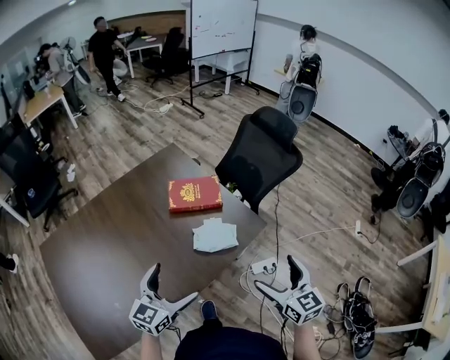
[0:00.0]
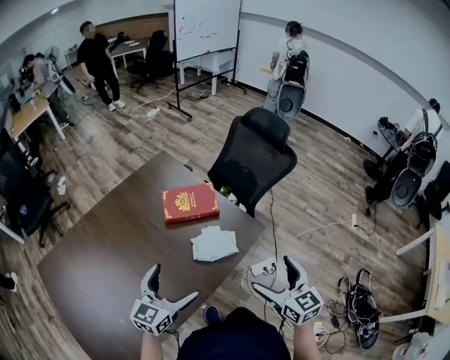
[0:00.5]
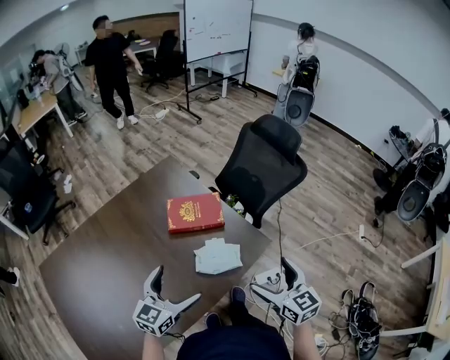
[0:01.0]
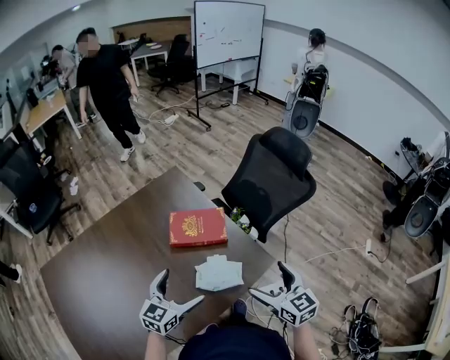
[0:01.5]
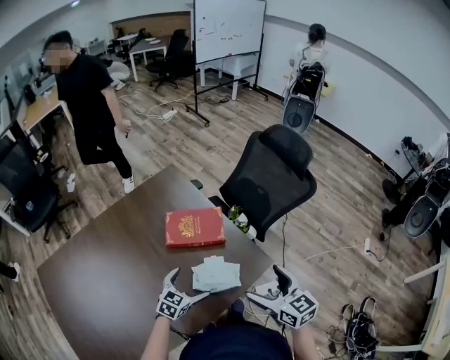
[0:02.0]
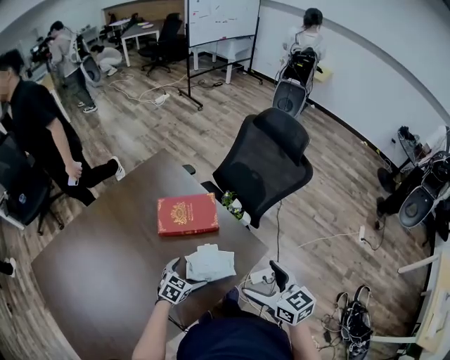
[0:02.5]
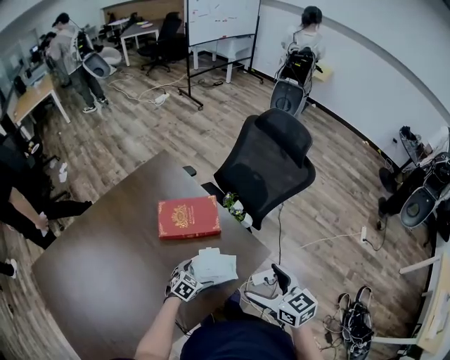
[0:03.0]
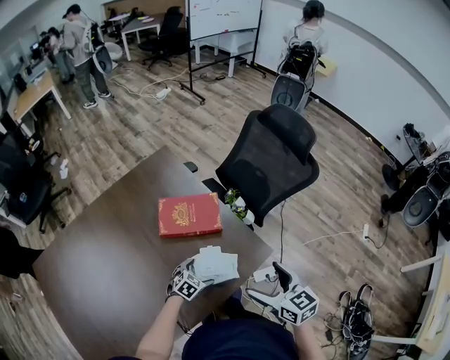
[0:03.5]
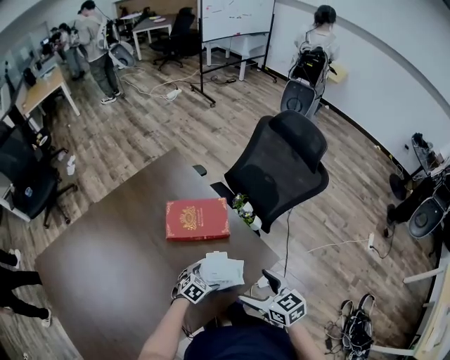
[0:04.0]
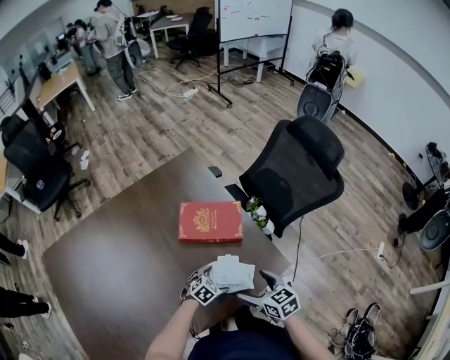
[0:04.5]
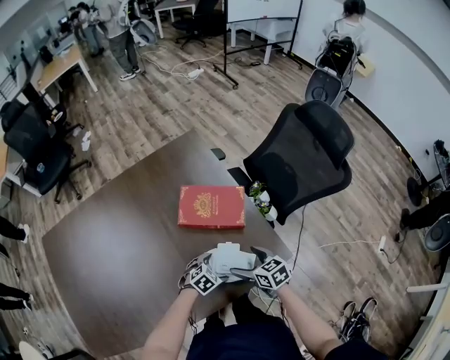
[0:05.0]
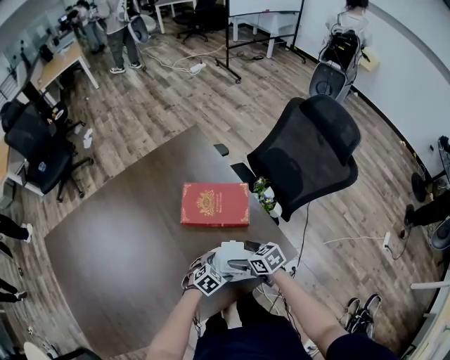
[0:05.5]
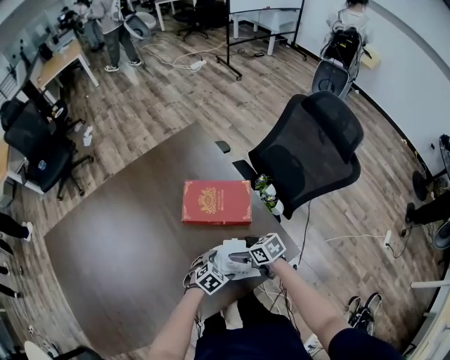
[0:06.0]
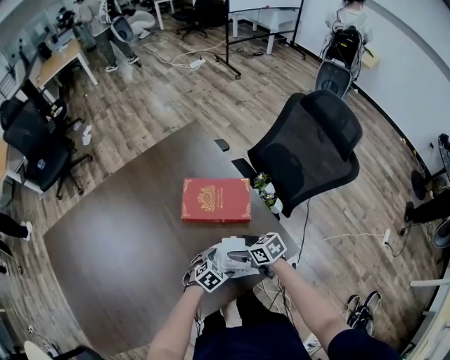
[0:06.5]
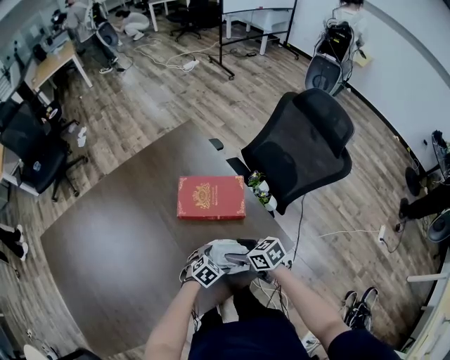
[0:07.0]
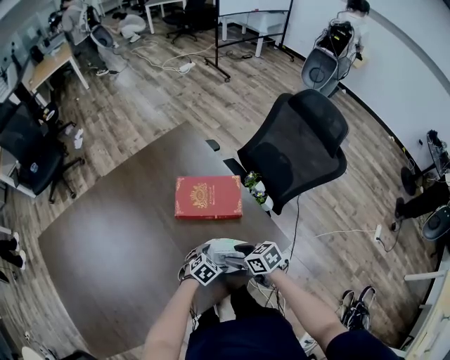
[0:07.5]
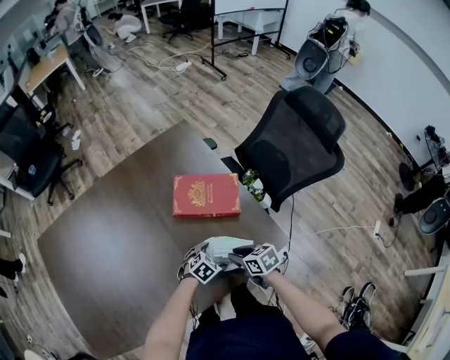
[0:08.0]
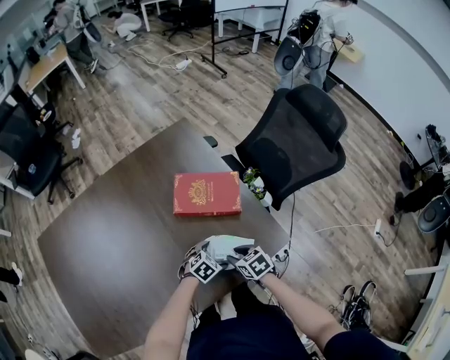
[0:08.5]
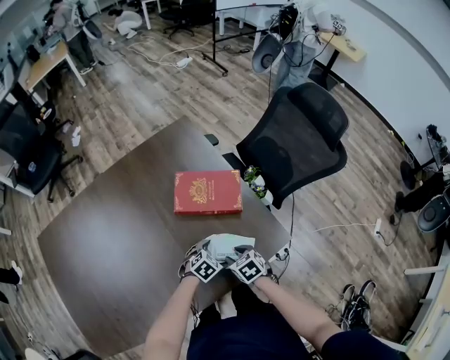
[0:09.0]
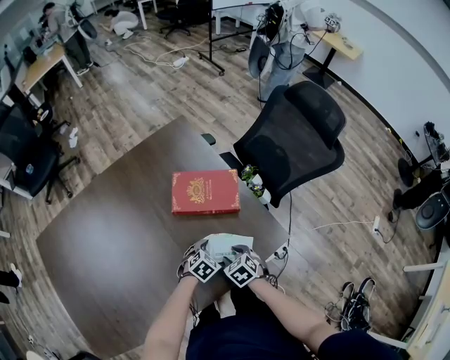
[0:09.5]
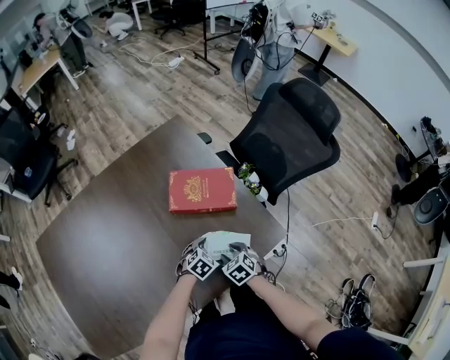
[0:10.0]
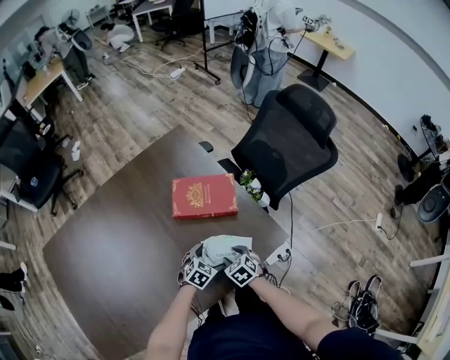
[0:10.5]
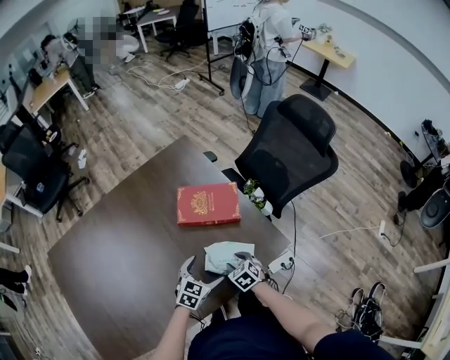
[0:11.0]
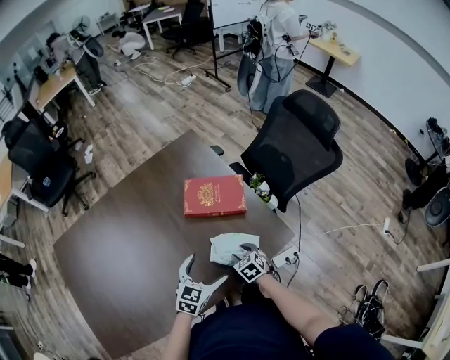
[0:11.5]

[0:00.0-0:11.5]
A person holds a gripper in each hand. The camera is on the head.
0:00.0 to 0:02.0: The left gripper moves forward and downward, some 30 cm, and turns by some 20 degrees. Meanwhile the right gripper heads forward, covering roughly 15 cm.
0:02.0 to 0:04.0: The right gripper heads downward, covering roughly 10 cm, while the left gripper goes roughly 15 cm downward, and changes its angle by approximately 20 degrees.
0:04.0 to 0:06.0: The right gripper heads downward, covering some 20 cm, and swivels roughly 30 degrees.
0:06.0 to 0:07.5: The right gripper shifts by roughly 5 cm.
0:07.5 to 0:09.5: The right gripper moves downward, about 5 cm, and rotates approximately 30 degrees.
0:09.5 to 0:11.5: The left gripper moves upward, about 20 cm, and rotates roughly 40 degrees.

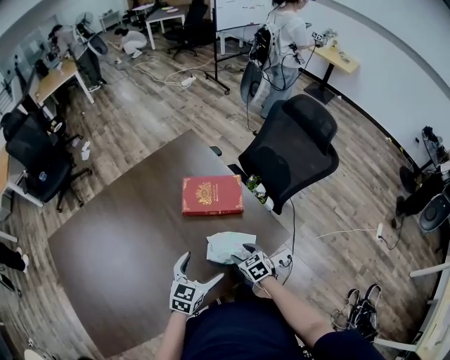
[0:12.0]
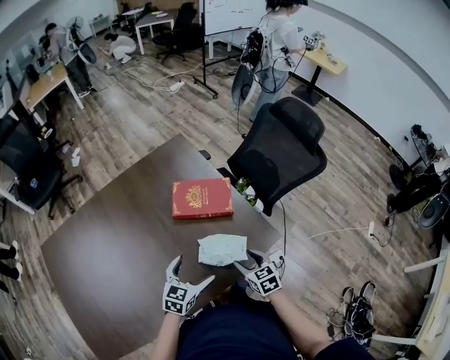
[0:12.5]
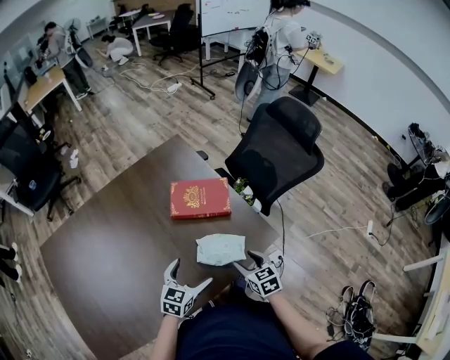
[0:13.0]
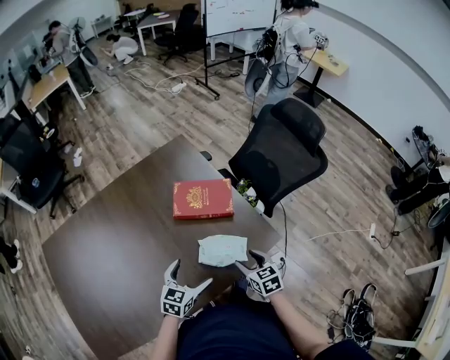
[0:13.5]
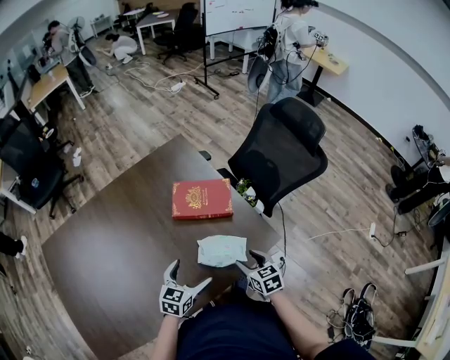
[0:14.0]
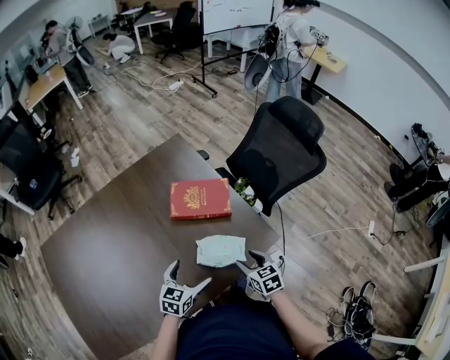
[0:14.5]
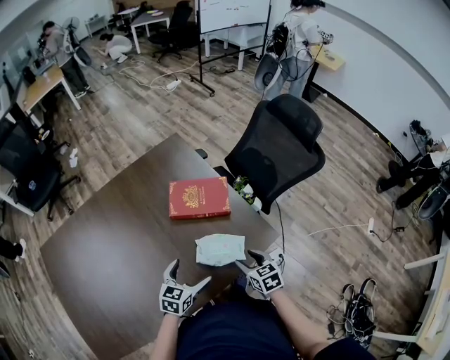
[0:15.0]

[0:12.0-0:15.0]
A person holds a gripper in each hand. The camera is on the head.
0:12.0 to 0:13.5: The right gripper goes some 10 cm upward and to the right.
0:13.5 to 0:15.0: Both grippers stay put.

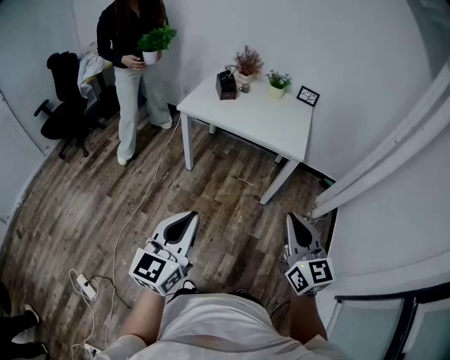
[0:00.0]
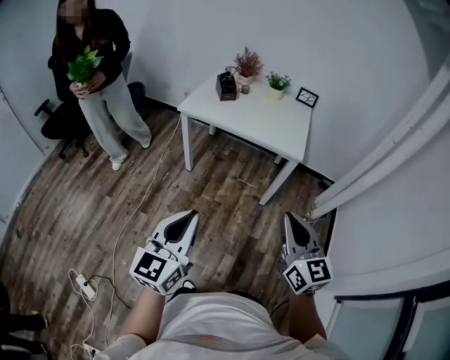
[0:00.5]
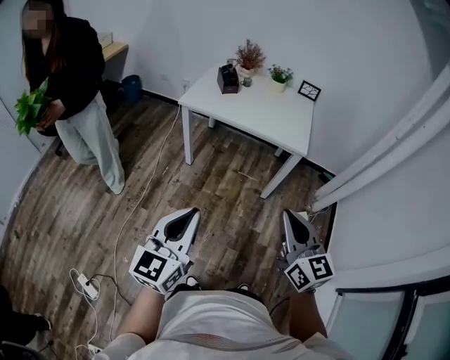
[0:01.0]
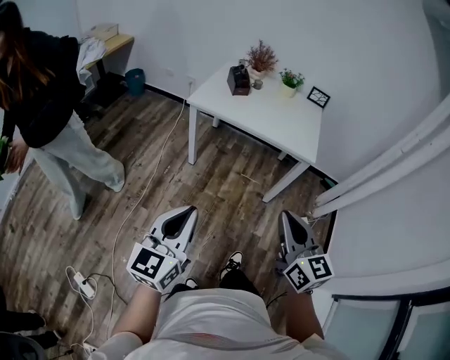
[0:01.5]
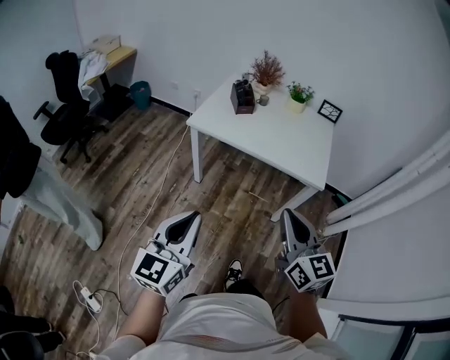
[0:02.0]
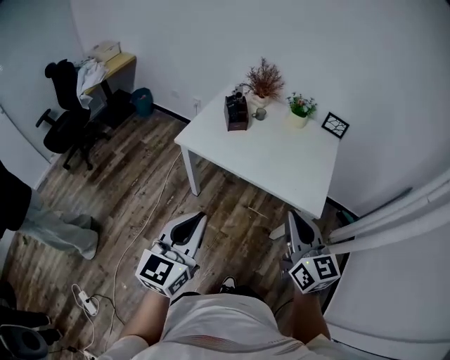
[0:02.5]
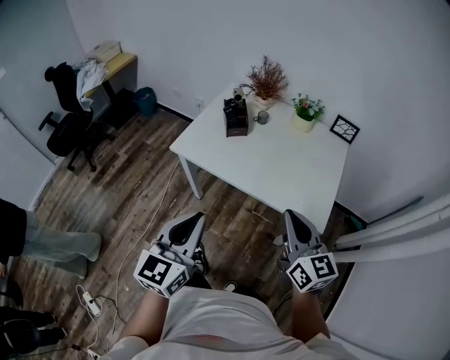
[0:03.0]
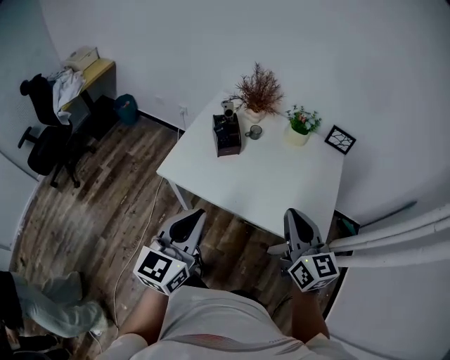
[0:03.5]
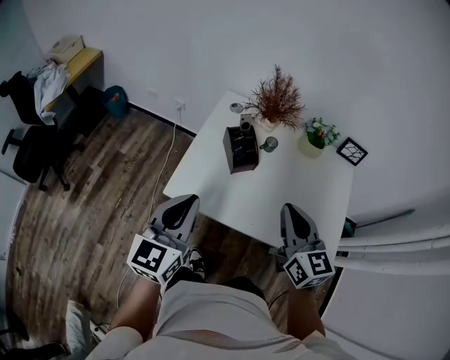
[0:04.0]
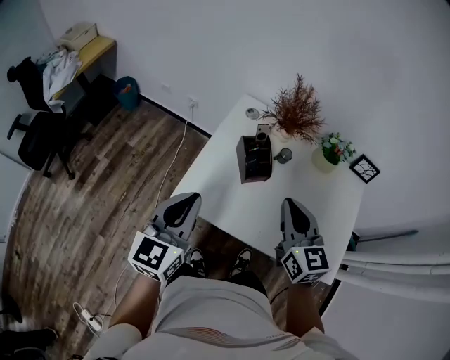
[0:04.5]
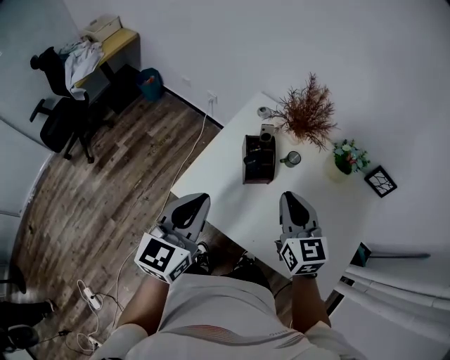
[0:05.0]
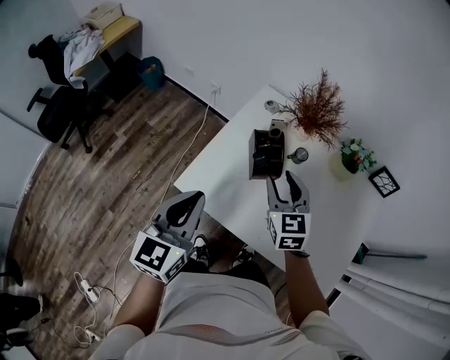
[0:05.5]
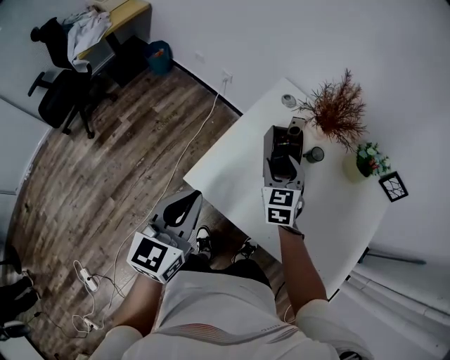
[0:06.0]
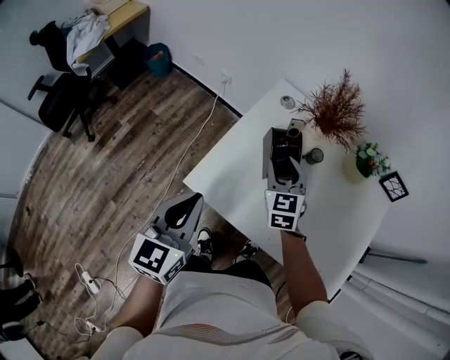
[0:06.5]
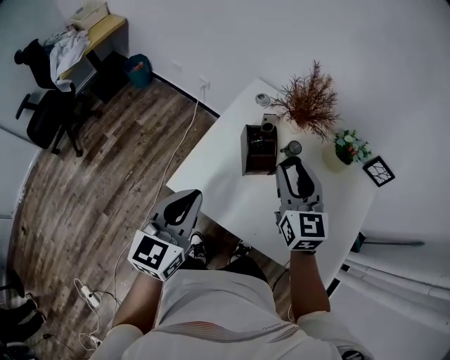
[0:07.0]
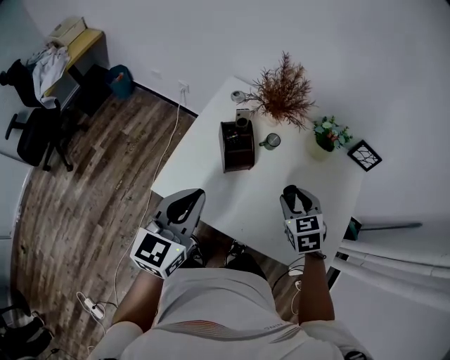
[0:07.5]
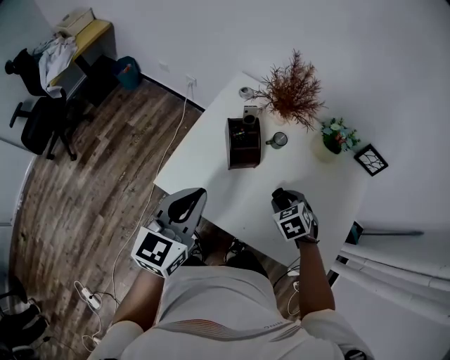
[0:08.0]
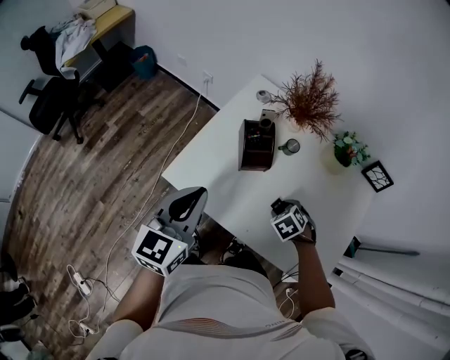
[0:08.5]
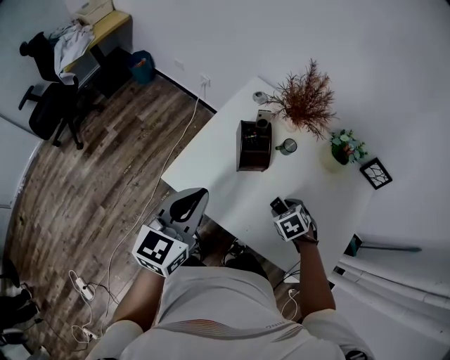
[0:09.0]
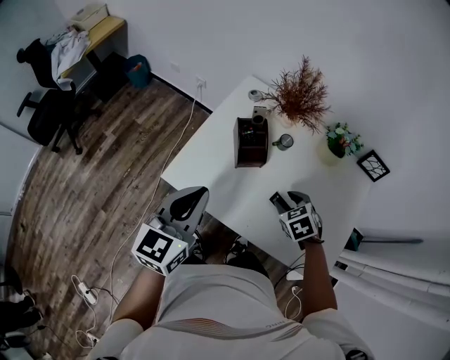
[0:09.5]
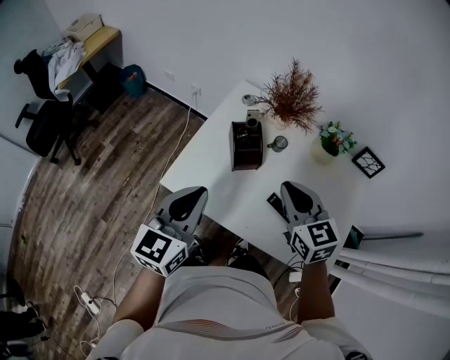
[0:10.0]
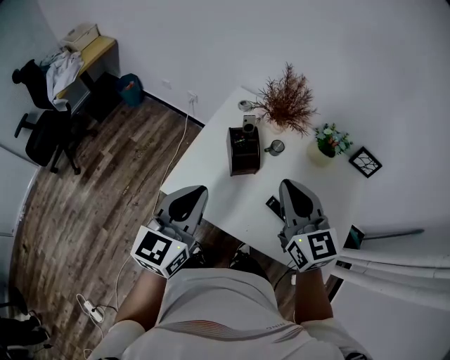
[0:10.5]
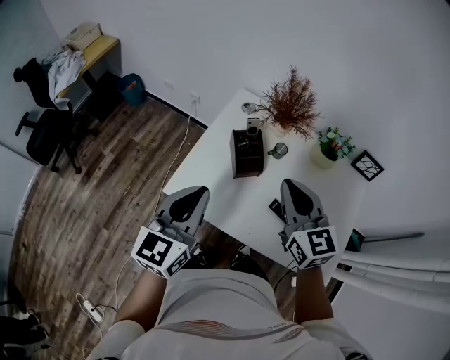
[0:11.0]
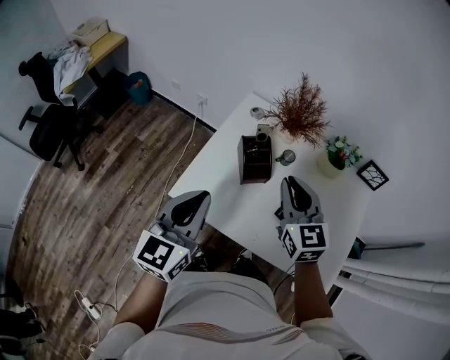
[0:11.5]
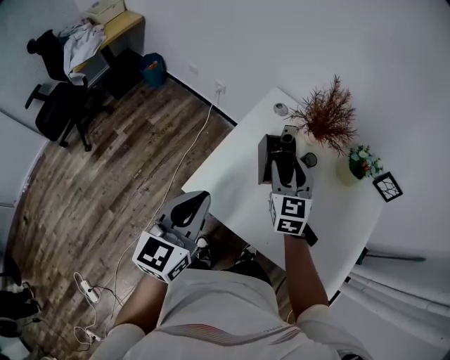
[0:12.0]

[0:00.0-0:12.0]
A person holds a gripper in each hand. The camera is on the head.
0:00.0 to 0:02.0: The two grippers go about 20 cm forward and to the left.
0:02.0 to 0:04.0: The pair of grippers is taken forward, roughly 50 cm.
0:04.0 to 0:06.0: The left gripper changes place by some 10 cm. Meanwhile the right gripper travels forward, downward and to the left by some 30 cm, swivels approximately 30 degrees, and opens up.
0:06.0 to 0:08.0: The left gripper moves to the right, approximately 10 cm, while the right gripper shifts roughly 25 cm to the right, backward and downward, and tips its fingers downward by about 30 degrees.
0:08.0 to 0:10.0: The right gripper shifts roughly 20 cm upward, points its fingers some 40 degrees further upward, and closes its fingers.
0:10.0 to 0:12.0: The left gripper is displaced to the left by roughly 10 cm. Meanwhile the right gripper shifts some 15 cm forward, to the left and downward, and opens up.
